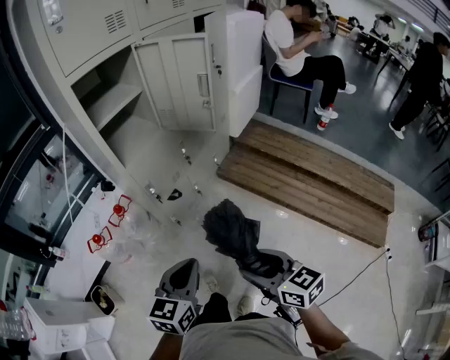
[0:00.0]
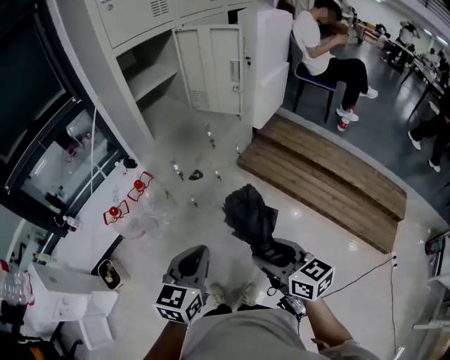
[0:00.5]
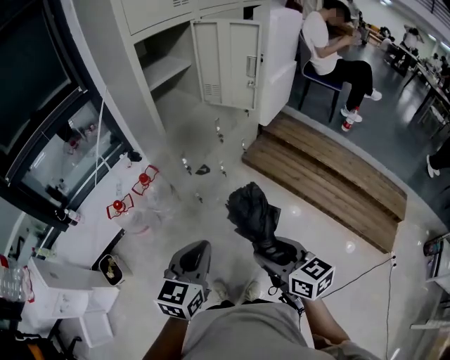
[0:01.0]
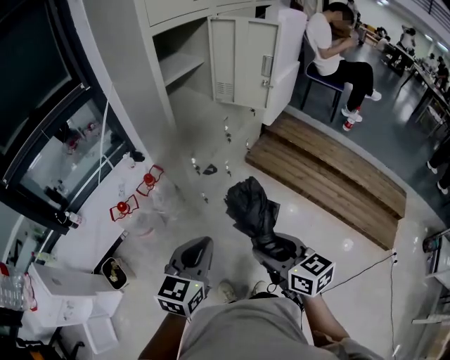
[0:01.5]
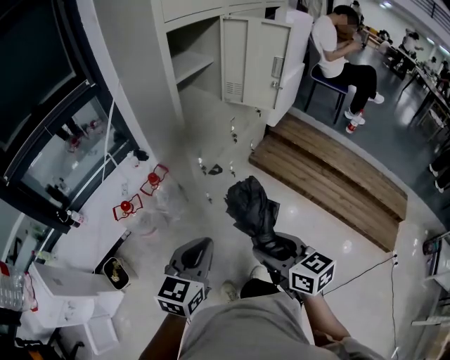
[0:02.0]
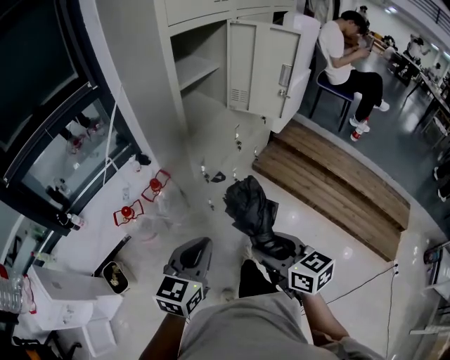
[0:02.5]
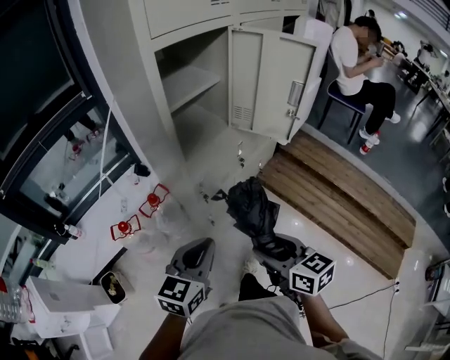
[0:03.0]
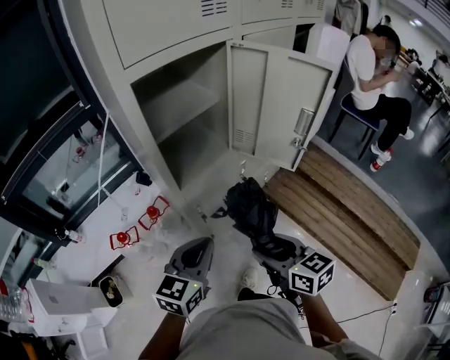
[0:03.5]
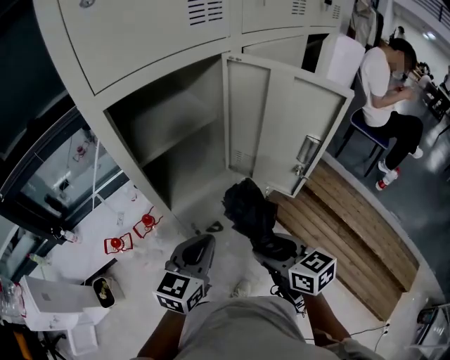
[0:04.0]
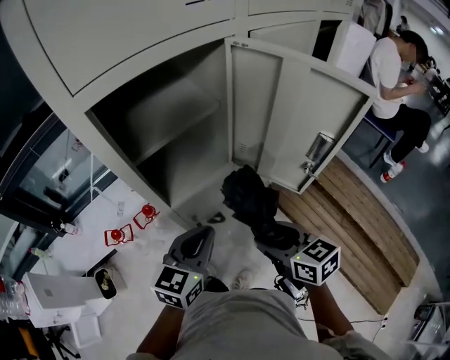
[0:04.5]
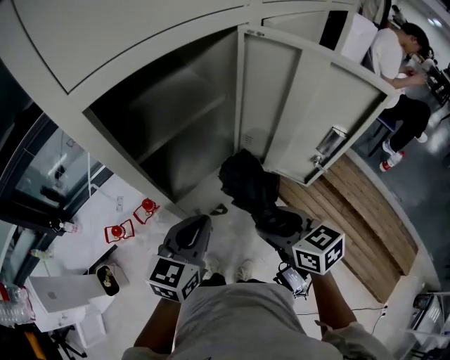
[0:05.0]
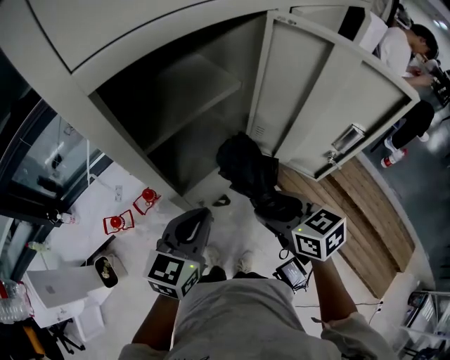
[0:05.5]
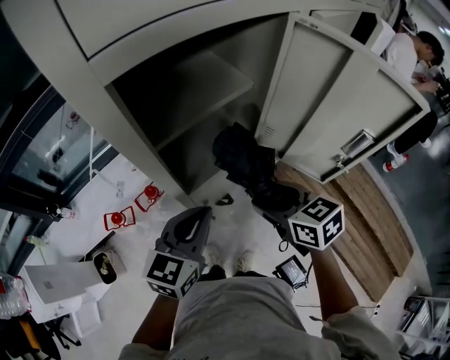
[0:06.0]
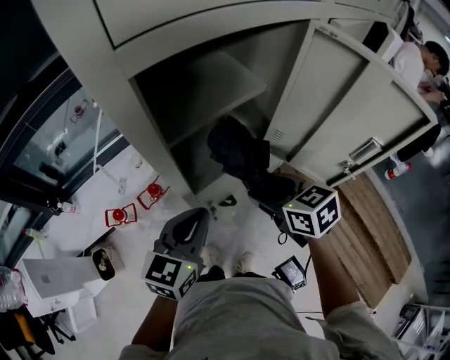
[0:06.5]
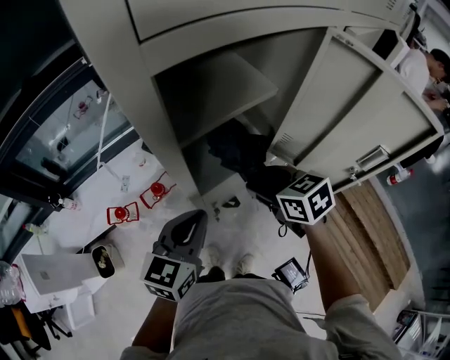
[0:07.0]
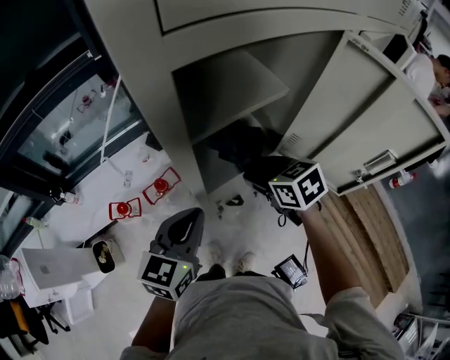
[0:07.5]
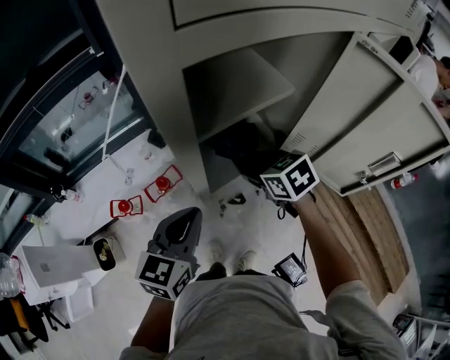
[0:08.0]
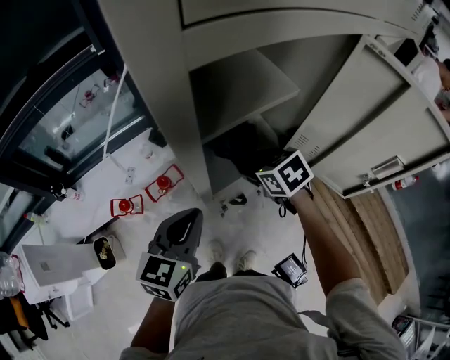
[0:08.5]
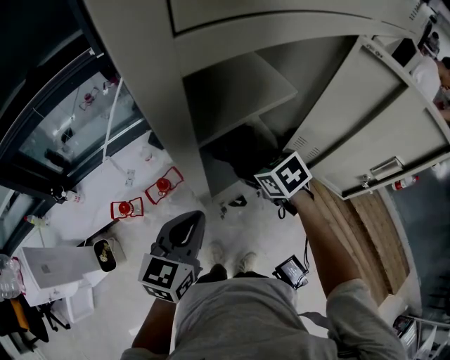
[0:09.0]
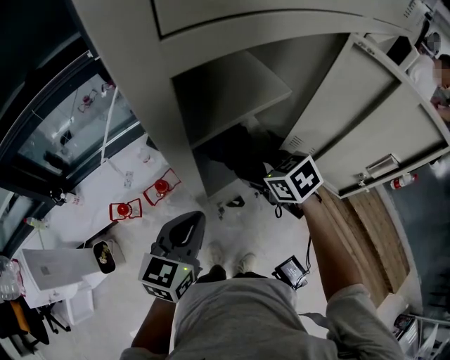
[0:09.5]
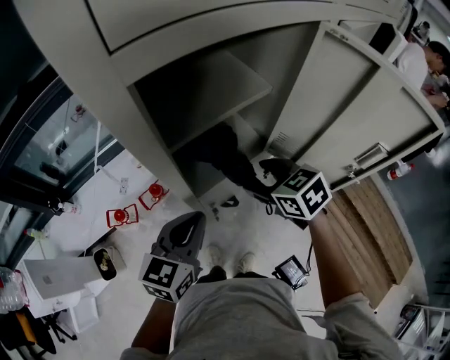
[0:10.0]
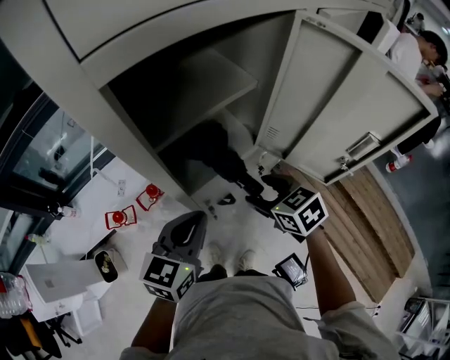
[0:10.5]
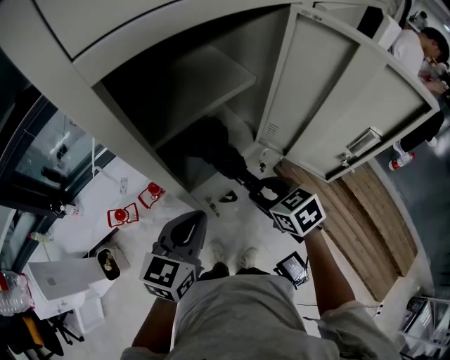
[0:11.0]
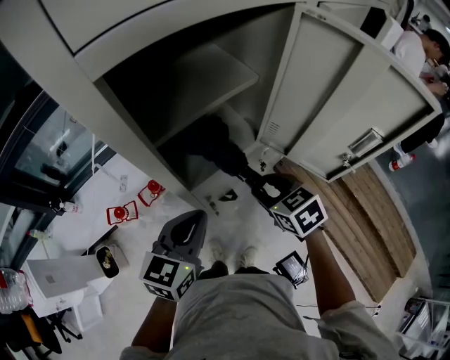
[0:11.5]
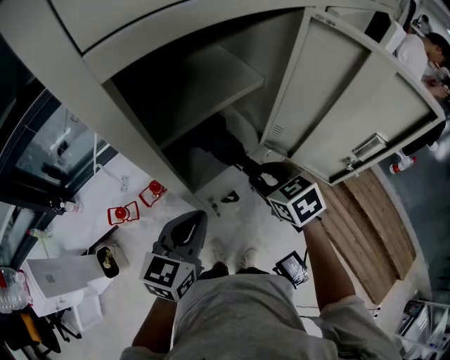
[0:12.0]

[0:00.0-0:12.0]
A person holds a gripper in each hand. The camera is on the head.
0:00.0 to 0:02.0: The two grippers go approximately 15 cm to the left.
0:02.0 to 0:04.0: The right gripper is displaced forward by some 35 cm. Meanwhile the left gripper goes about 35 cm forward and to the right.
0:04.0 to 0:06.0: Both grippers travel together forward and to the left, roughly 10 cm.
0:06.0 to 0:08.0: The right gripper is displaced forward, to the left and downward by about 15 cm. Meanwhile the left gripper is displaced to the left by roughly 10 cm.
0:08.0 to 0:10.0: The right gripper ends up approximately 5 cm from where it was.

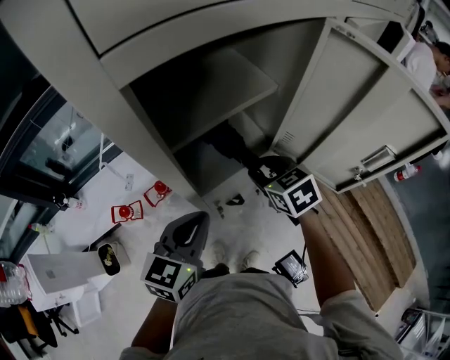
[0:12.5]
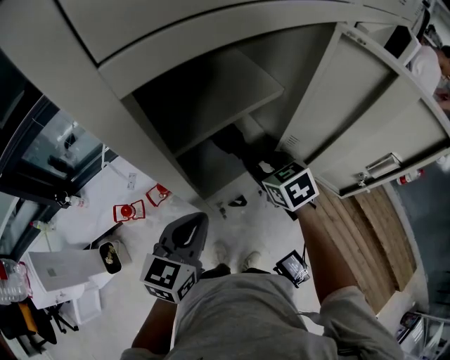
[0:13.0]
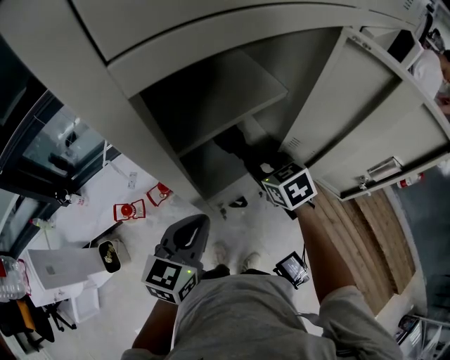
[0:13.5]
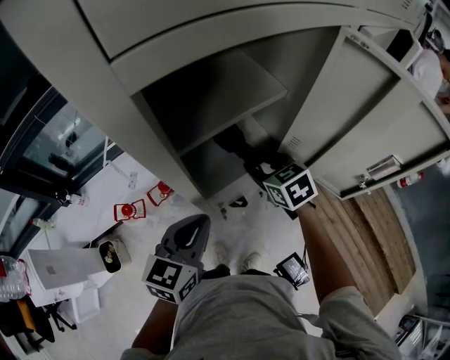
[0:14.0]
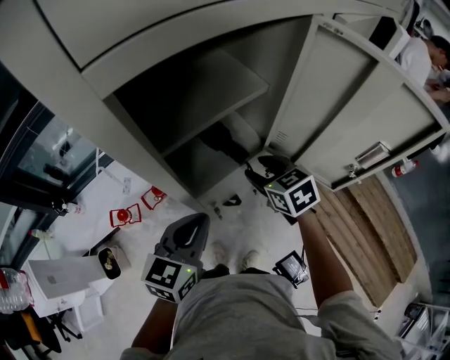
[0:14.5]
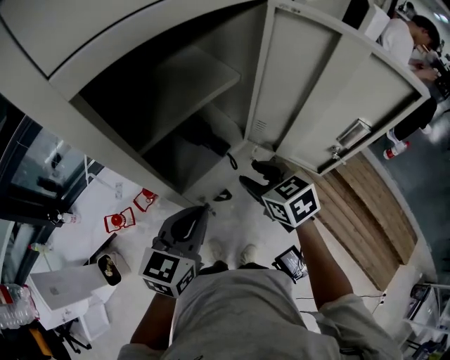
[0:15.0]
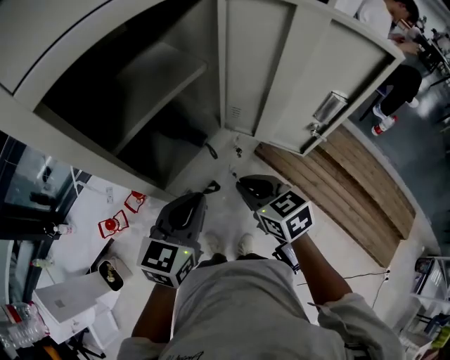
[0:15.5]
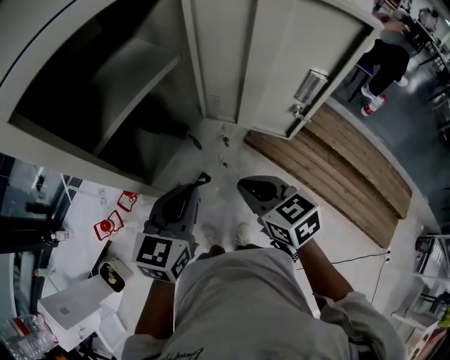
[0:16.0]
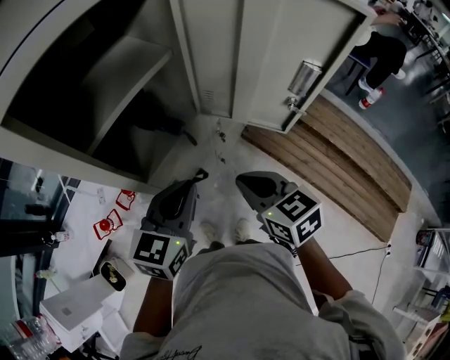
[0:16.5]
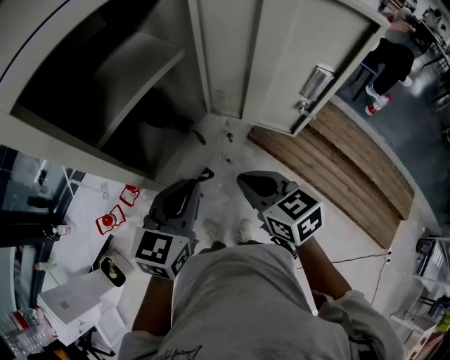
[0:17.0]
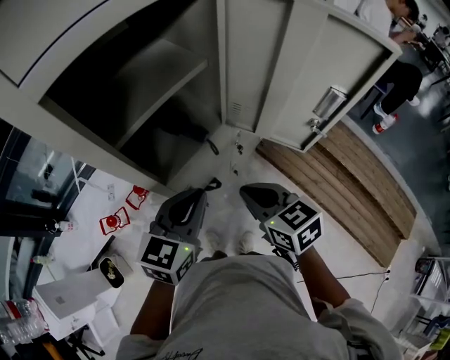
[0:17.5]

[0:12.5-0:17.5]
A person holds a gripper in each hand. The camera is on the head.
0:12.5 to 0:15.0: The right gripper ends up approximately 5 cm from where it was.
0:15.0 to 0:17.5: The right gripper goes roughly 10 cm backward, and closes.

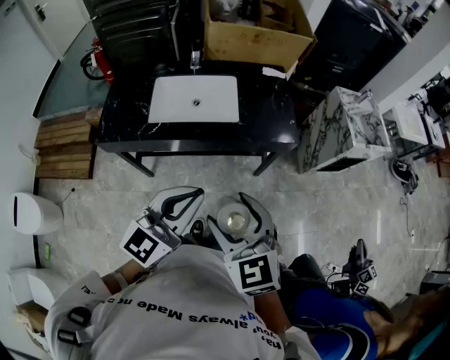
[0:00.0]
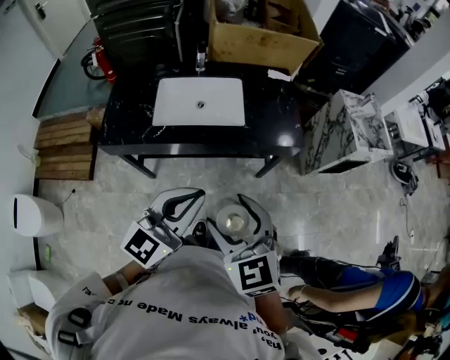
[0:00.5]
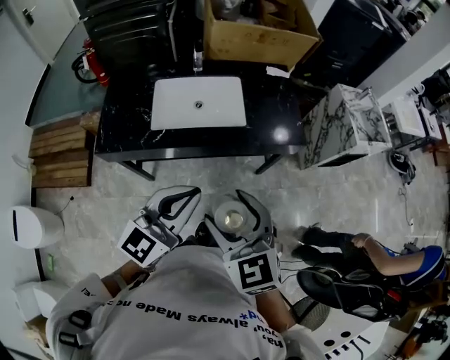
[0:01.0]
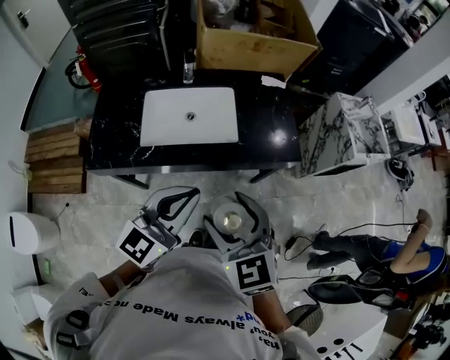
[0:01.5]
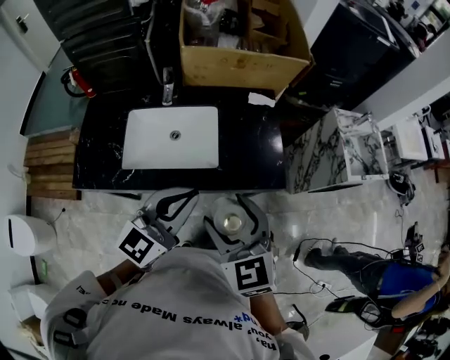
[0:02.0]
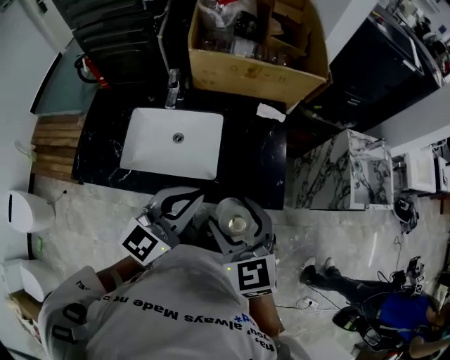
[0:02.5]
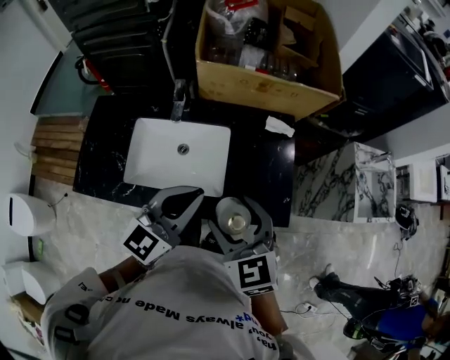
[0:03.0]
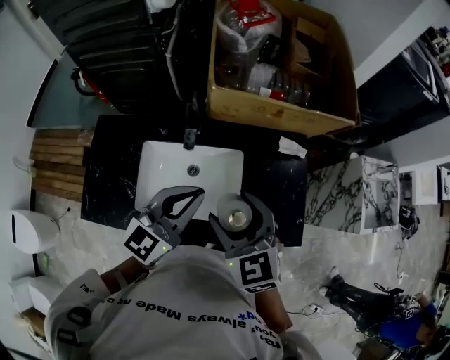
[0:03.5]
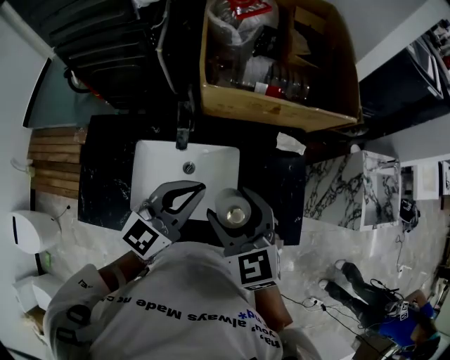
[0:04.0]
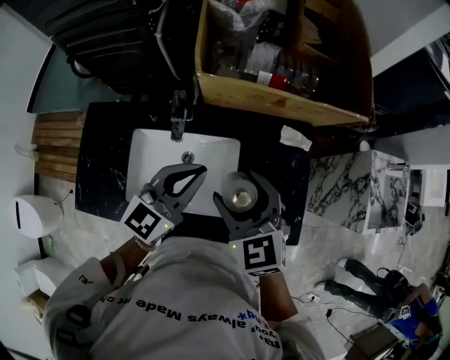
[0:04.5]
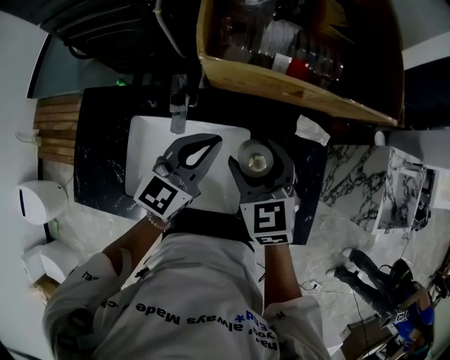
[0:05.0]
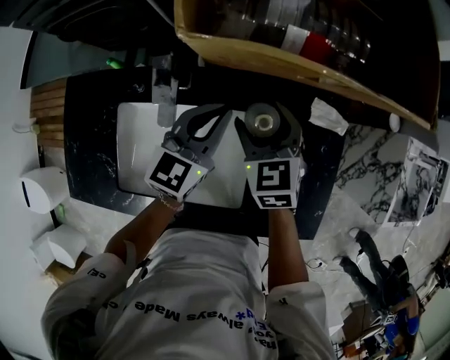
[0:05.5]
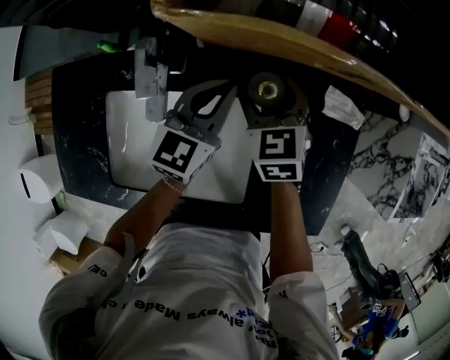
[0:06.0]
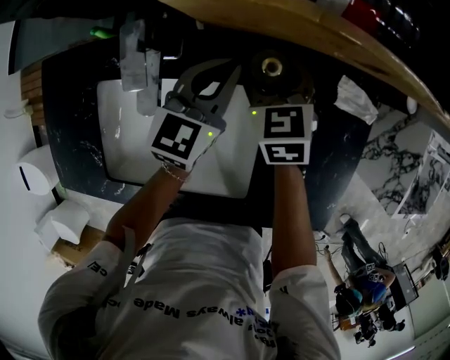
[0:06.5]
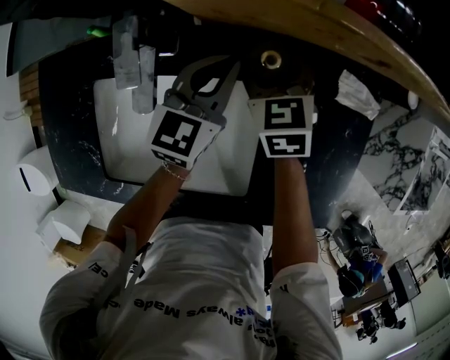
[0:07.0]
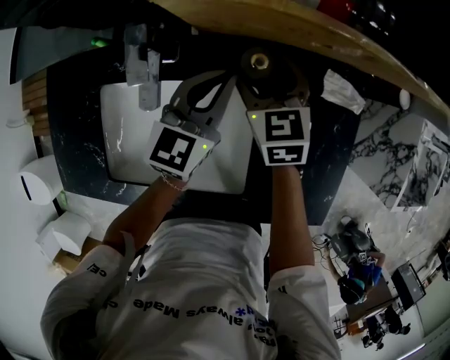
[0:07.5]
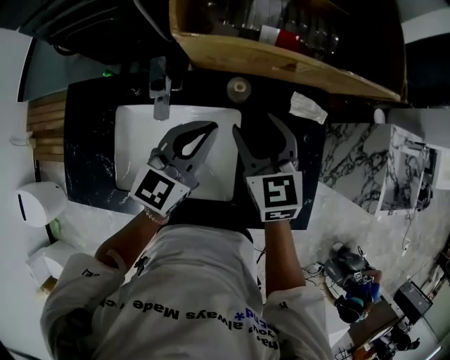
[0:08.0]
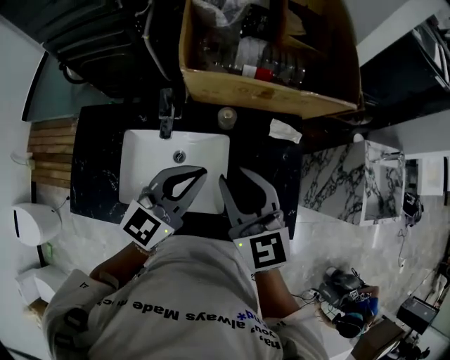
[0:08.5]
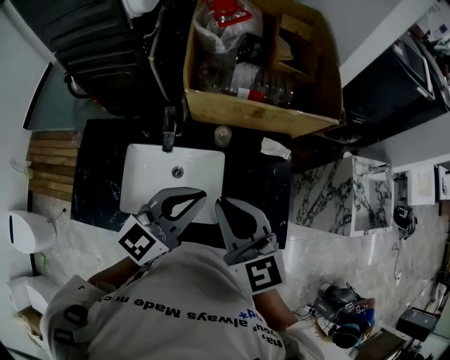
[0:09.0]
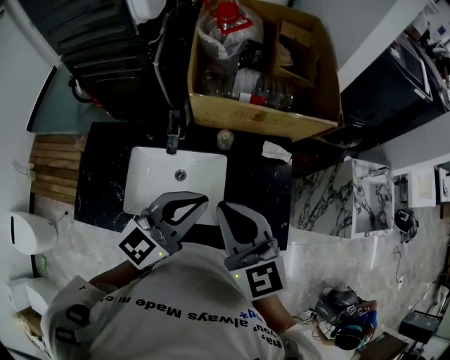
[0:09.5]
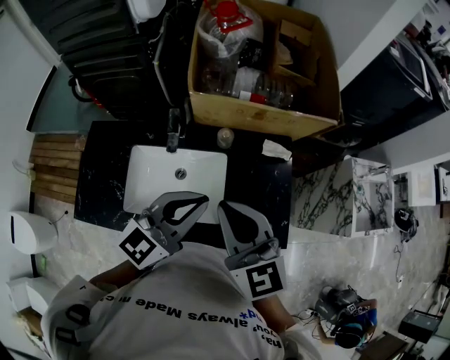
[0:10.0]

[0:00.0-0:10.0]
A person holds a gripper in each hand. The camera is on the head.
0:00.0 to 0:02.0: The grippers both shift forward by roughly 25 cm.
0:02.0 to 0:04.0: Both grippers travel together forward, about 25 cm.
0:04.0 to 0:06.0: Both grippers move downward and forward, about 35 cm.
0:06.0 to 0:08.0: Both grippers move upward and backward, roughly 15 cm.
0:08.0 to 0:10.0: The two grippers go roughly 25 cm upward and backward. The right gripper closes its fingers.
